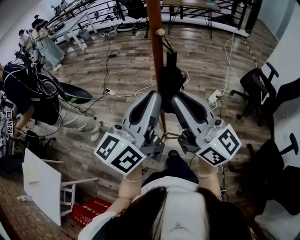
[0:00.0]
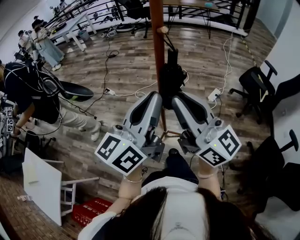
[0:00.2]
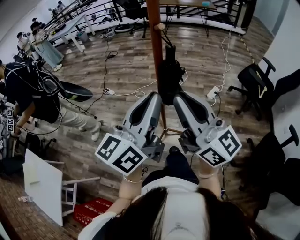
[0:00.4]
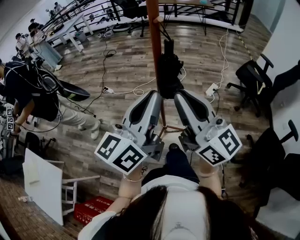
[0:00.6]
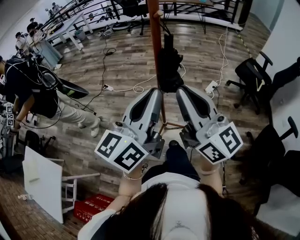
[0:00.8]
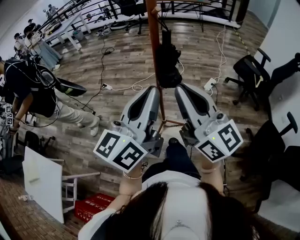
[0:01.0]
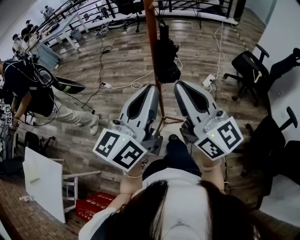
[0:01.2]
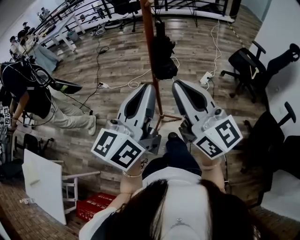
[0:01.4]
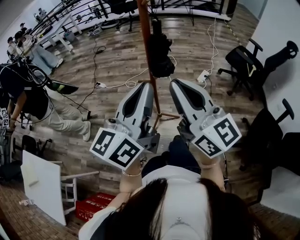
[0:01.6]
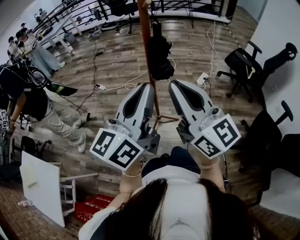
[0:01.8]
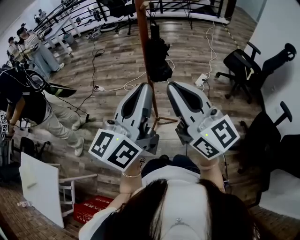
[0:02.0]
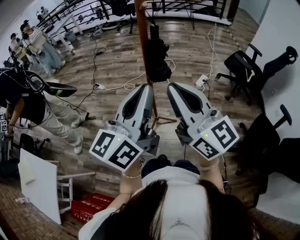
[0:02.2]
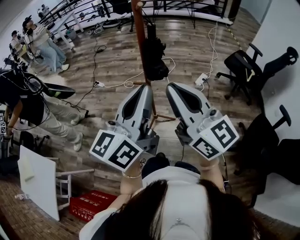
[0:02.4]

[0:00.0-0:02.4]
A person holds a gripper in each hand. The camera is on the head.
0:00.0 to 0:01.2: Both grippers travel together backward, about 10 cm.
0:01.2 to 0:02.4: The grippers move only a little.

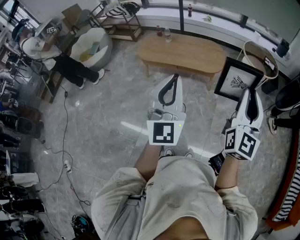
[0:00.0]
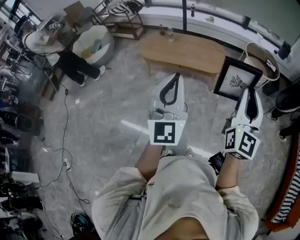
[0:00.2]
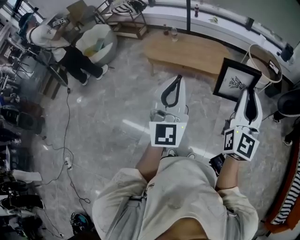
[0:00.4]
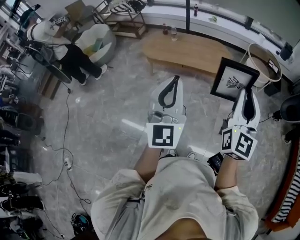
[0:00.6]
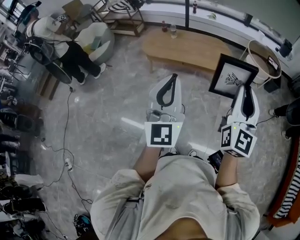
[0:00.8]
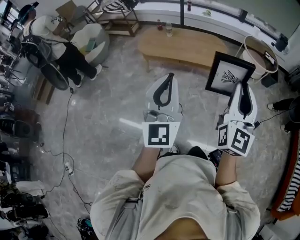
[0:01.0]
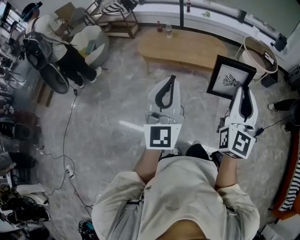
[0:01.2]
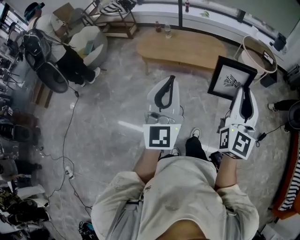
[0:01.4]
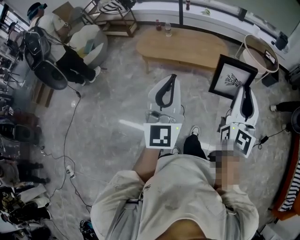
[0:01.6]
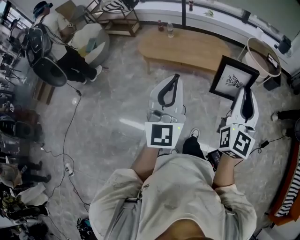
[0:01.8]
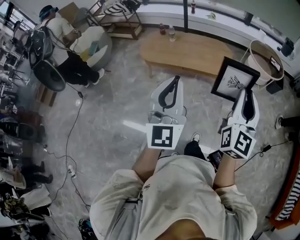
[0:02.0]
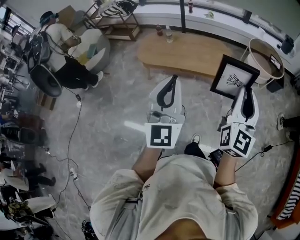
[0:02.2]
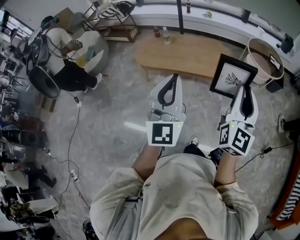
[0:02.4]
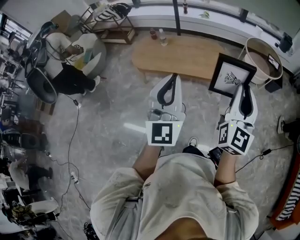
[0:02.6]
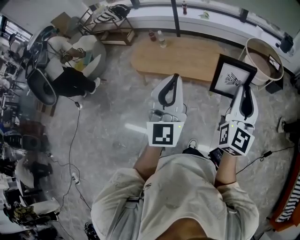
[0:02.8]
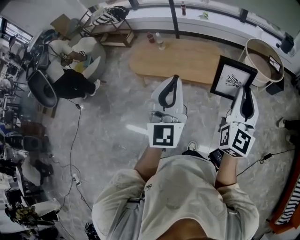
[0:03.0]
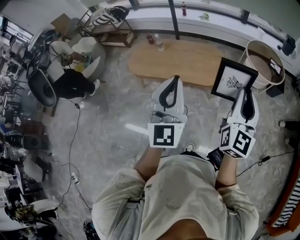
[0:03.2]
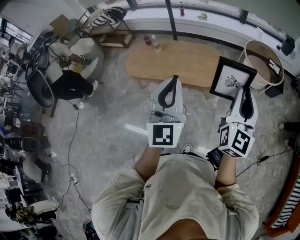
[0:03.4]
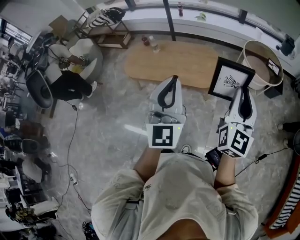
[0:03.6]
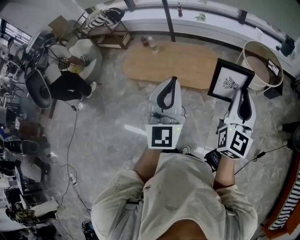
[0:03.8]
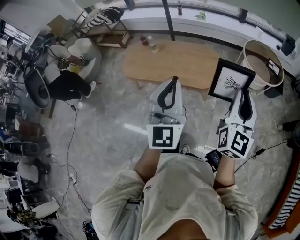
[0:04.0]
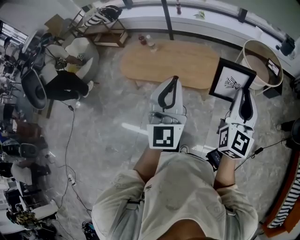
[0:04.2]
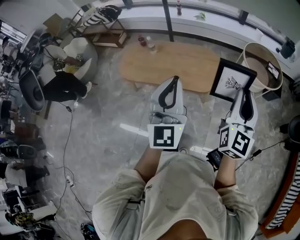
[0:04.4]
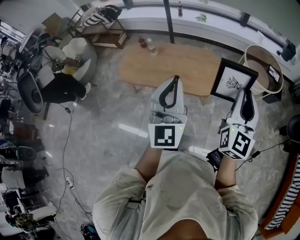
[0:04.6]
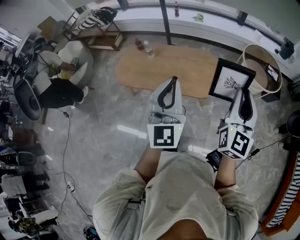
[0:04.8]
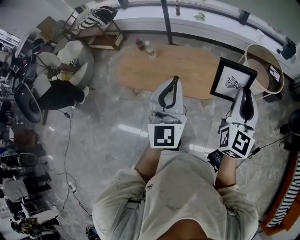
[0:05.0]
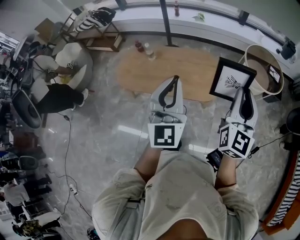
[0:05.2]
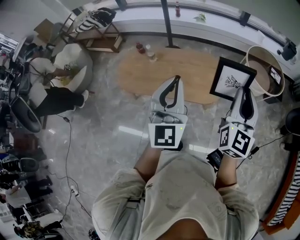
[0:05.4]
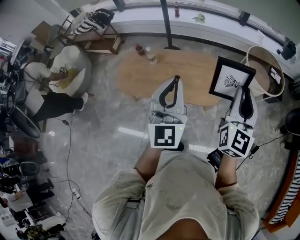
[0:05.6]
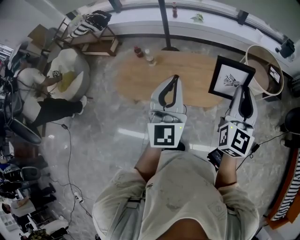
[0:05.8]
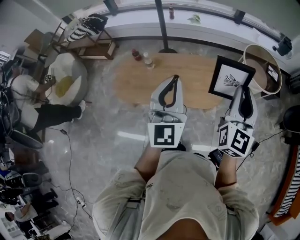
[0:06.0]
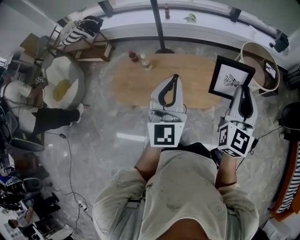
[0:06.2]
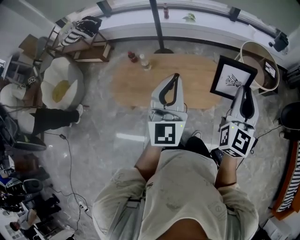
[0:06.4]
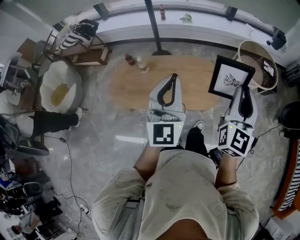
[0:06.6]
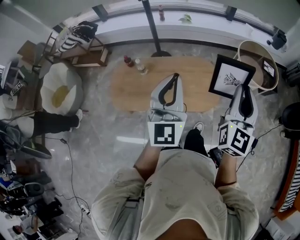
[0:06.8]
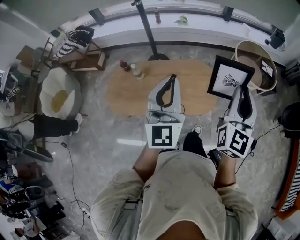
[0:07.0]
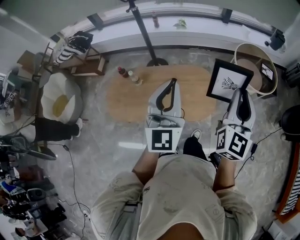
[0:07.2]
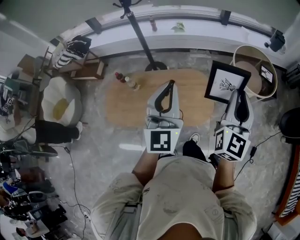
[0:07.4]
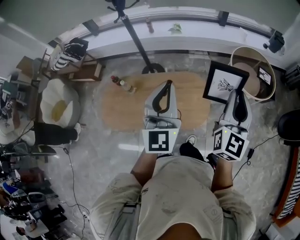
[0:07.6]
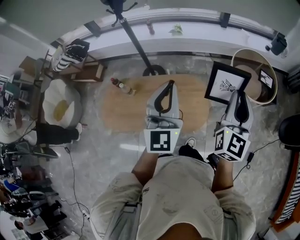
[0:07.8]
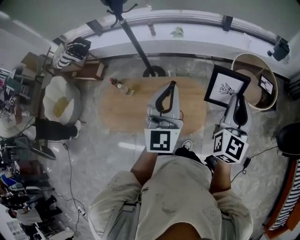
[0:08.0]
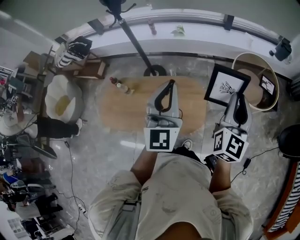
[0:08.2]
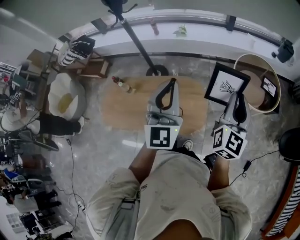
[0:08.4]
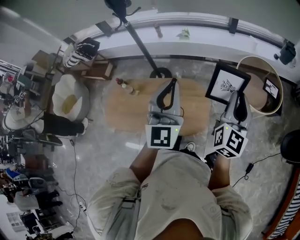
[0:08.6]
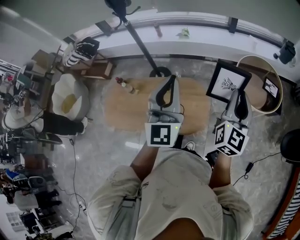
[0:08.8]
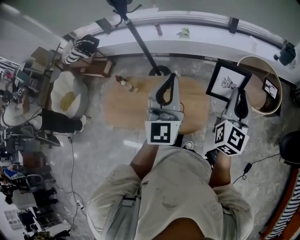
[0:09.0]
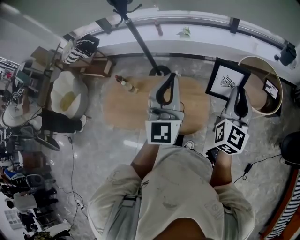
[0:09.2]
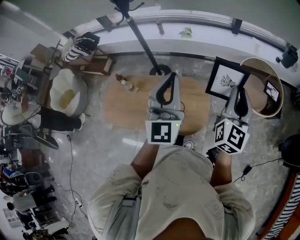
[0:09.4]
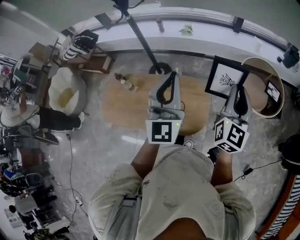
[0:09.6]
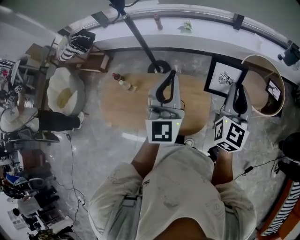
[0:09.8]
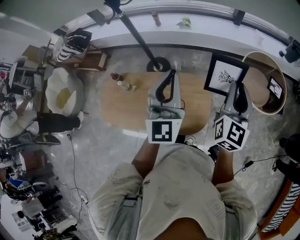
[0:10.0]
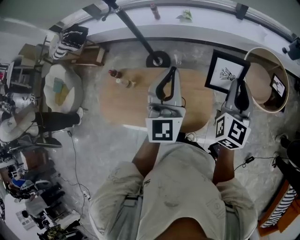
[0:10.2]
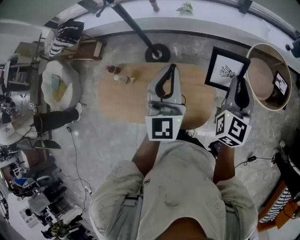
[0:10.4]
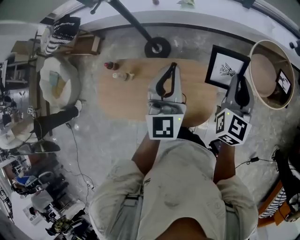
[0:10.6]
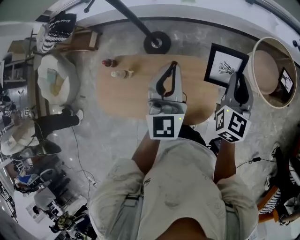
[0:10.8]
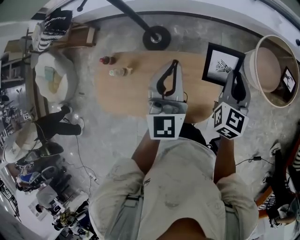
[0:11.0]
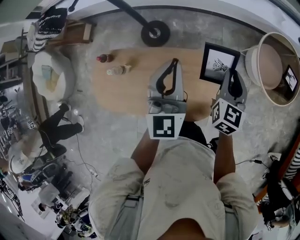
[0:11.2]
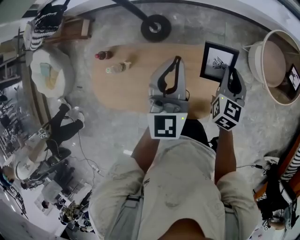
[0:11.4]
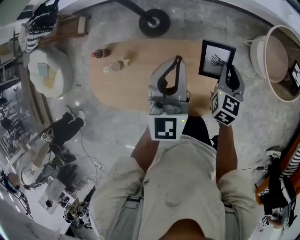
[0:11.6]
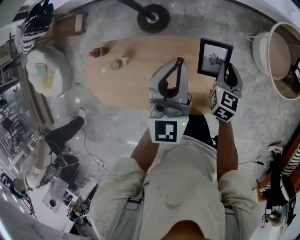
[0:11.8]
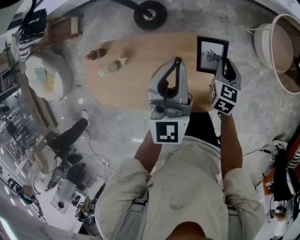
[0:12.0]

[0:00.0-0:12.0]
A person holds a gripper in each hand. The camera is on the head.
0:00.0 to 0:01.6: Both grippers move to the left, approximately 10 cm.
0:01.6 to 0:03.0: The two grippers go some 25 cm forward and to the right.
0:03.0 to 0:04.4: Both grippers move forward, approximately 10 cm.
0:04.4 to 0:06.0: The two grippers go roughly 20 cm forward and to the left.
0:06.0 to 0:07.6: Both grippers move forward and to the right, approximately 20 cm.
0:07.6 to 0:09.0: Both grippers travel together to the right and forward, roughly 10 cm.
0:09.0 to 0:10.4: The two grippers go roughly 20 cm forward, downward and to the left.
0:10.4 to 0:12.0: The left gripper travels downward, forward and to the left by about 20 cm. The right gripper goes about 35 cm downward, and tips its fingers downward by some 40 degrees.

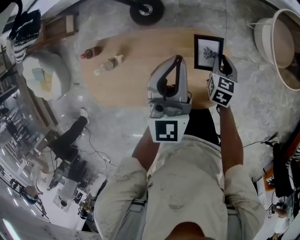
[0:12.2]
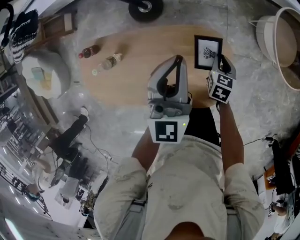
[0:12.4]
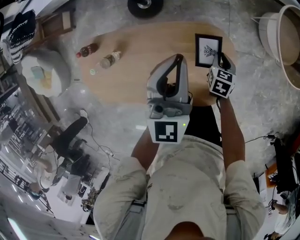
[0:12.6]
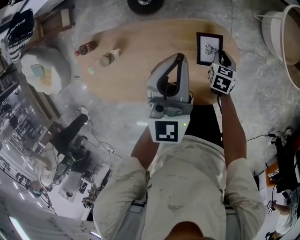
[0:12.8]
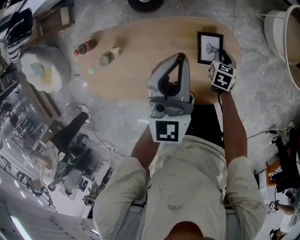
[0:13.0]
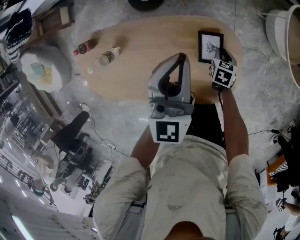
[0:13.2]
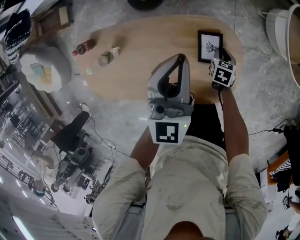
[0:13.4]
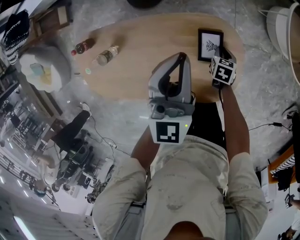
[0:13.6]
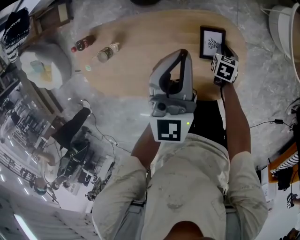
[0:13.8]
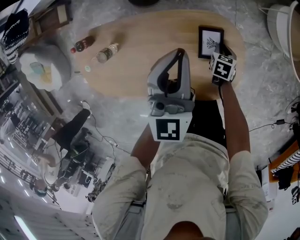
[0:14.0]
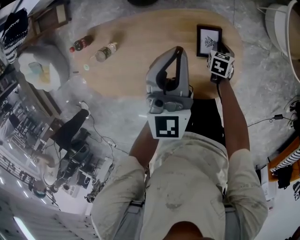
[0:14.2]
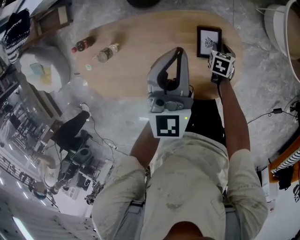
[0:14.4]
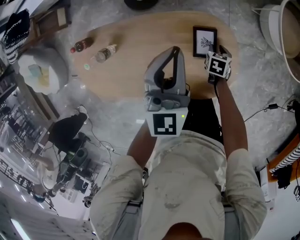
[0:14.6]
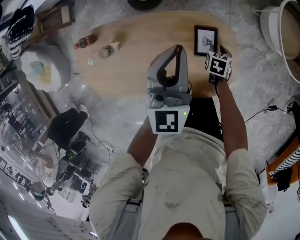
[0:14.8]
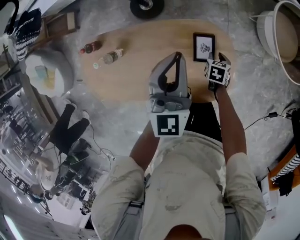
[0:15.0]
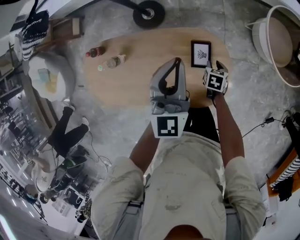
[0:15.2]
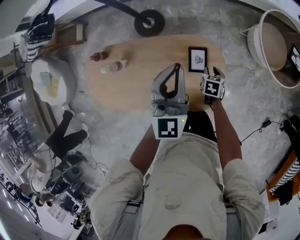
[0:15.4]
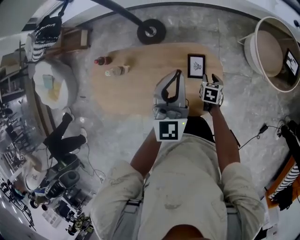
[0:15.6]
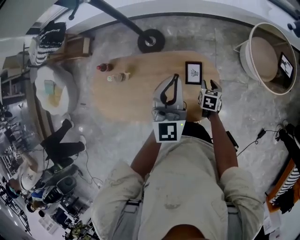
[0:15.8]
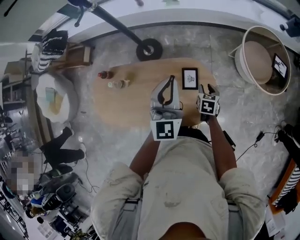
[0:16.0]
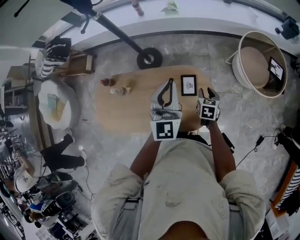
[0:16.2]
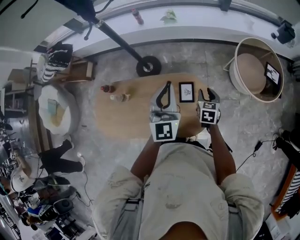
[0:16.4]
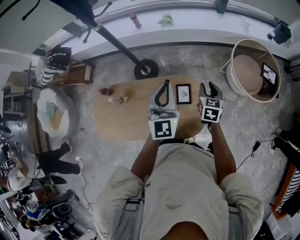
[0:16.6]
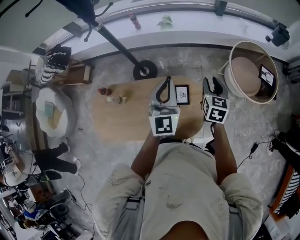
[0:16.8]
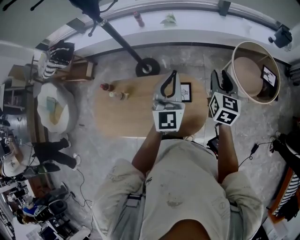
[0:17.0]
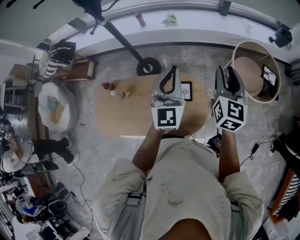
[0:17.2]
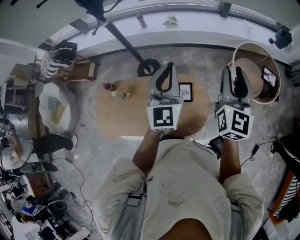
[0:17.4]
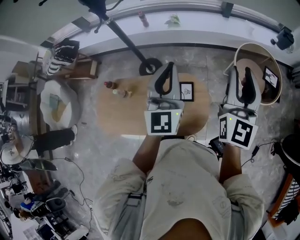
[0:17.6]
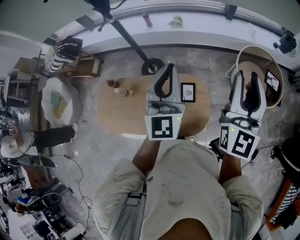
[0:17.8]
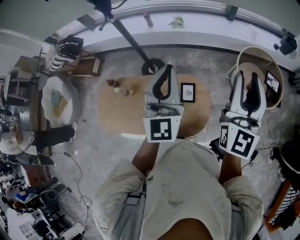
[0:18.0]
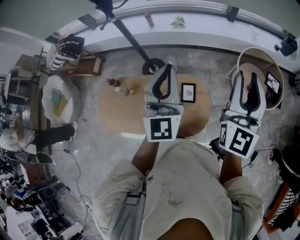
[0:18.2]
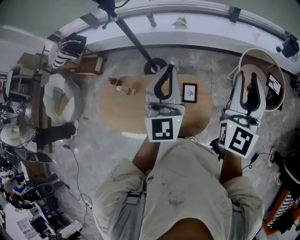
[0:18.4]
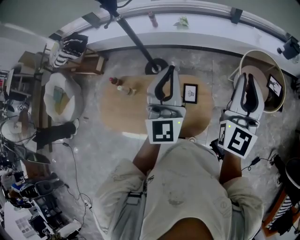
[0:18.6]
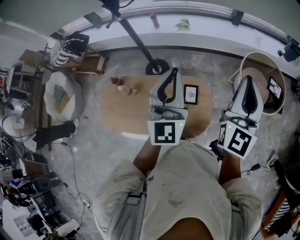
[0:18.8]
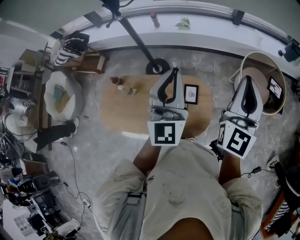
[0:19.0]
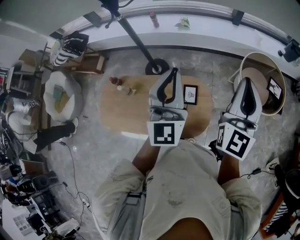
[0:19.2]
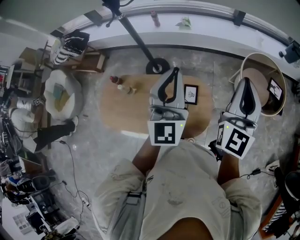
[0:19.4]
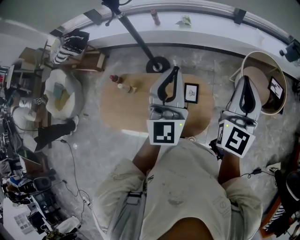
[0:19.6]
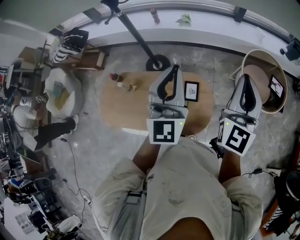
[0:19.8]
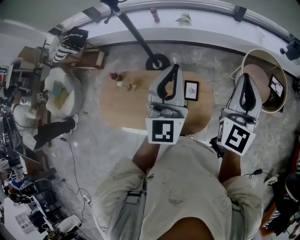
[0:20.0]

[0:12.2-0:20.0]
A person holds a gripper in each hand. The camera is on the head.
0:12.2 to 0:13.8: The left gripper moves downward, about 10 cm, while the right gripper moves downward, approximately 20 cm.
0:13.8 to 0:15.4: The left gripper shifts about 10 cm upward and backward. Meanwhile the right gripper moves upward, roughly 10 cm.
0:15.4 to 0:16.8: The left gripper is displaced upward by some 10 cm, while the right gripper moves upward, about 35 cm, and angles its fingers upward, by approximately 40 degrees.
0:16.8 to 0:18.4: The right gripper goes some 25 cm upward, and tilts its fingers roughly 40 degrees upward, while the left gripper travels upward by approximately 15 cm.
0:18.4 to 0:20.0: The right gripper closes its fingers.

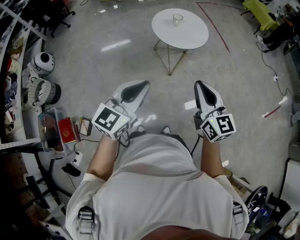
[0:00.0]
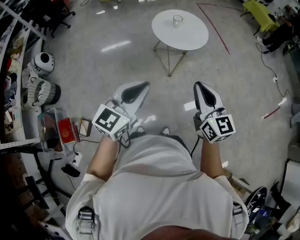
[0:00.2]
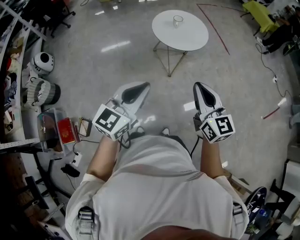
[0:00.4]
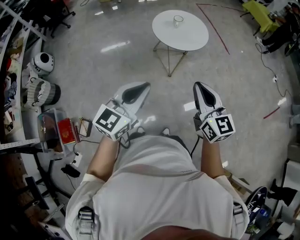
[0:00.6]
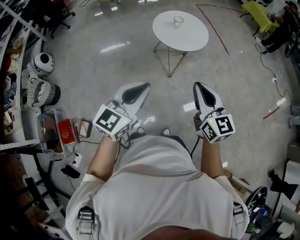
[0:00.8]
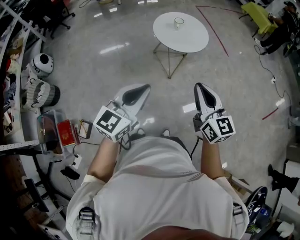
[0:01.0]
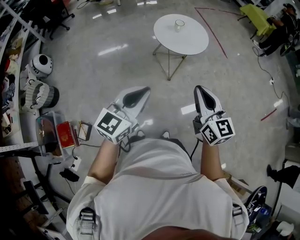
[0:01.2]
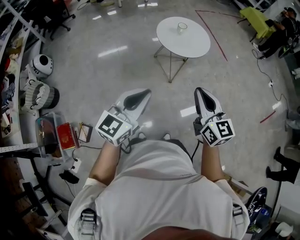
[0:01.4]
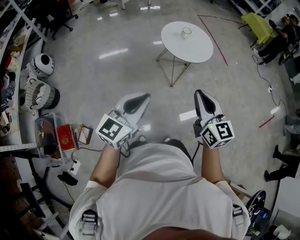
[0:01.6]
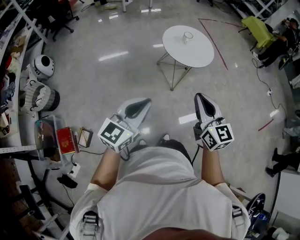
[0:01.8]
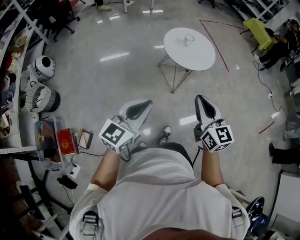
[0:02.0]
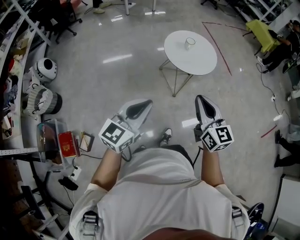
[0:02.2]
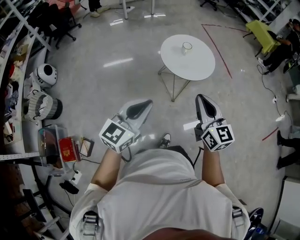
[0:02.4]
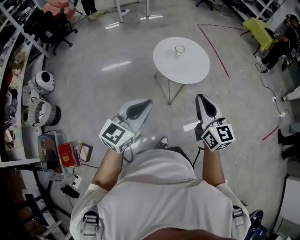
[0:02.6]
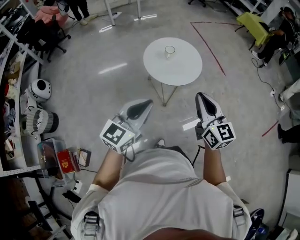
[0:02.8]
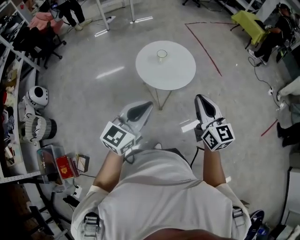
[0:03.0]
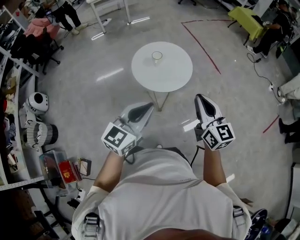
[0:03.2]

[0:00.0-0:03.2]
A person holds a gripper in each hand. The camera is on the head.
0:00.0 to 0:01.6: The grippers both shift to the left by approximately 10 cm.
0:01.6 to 0:03.2: Both grippers move forward and to the right, approximately 35 cm.
